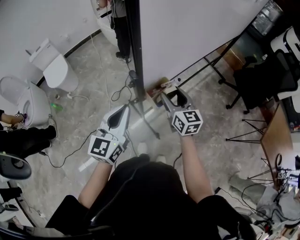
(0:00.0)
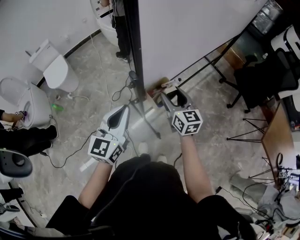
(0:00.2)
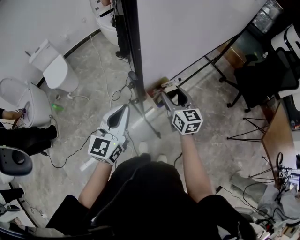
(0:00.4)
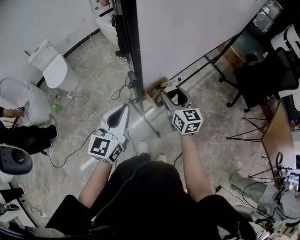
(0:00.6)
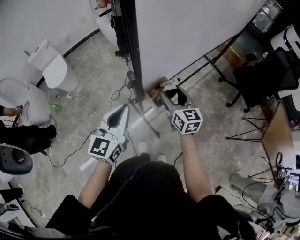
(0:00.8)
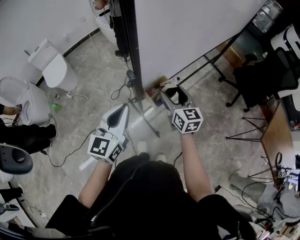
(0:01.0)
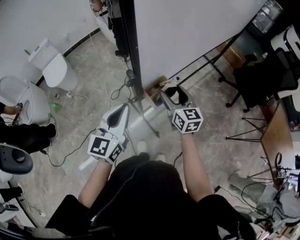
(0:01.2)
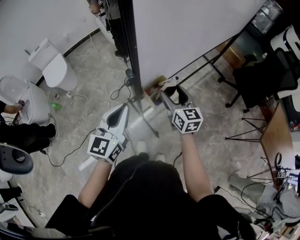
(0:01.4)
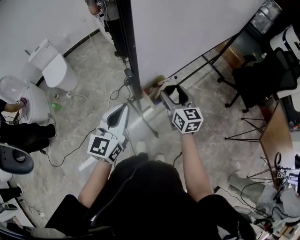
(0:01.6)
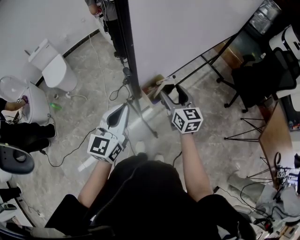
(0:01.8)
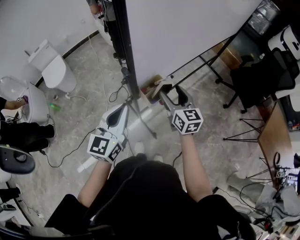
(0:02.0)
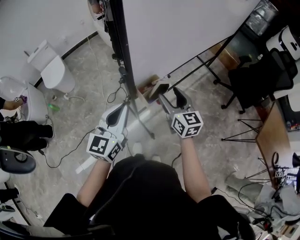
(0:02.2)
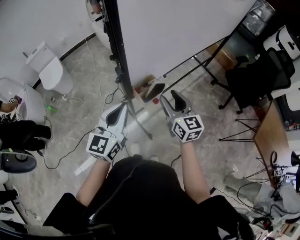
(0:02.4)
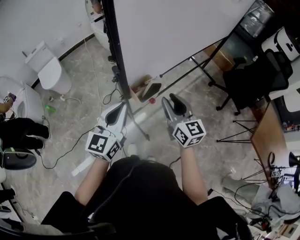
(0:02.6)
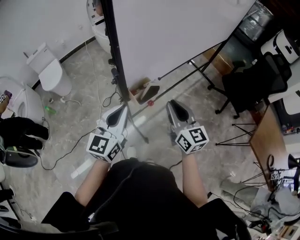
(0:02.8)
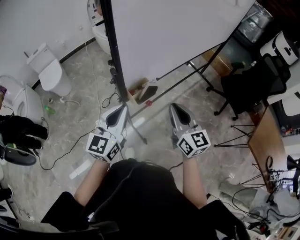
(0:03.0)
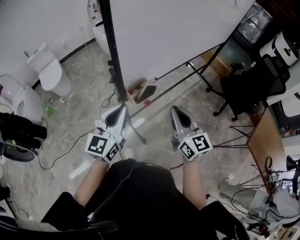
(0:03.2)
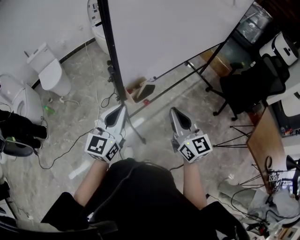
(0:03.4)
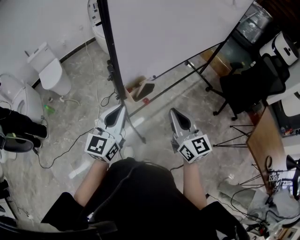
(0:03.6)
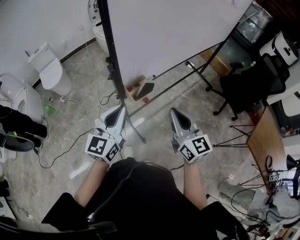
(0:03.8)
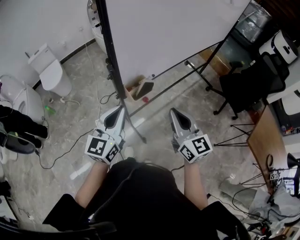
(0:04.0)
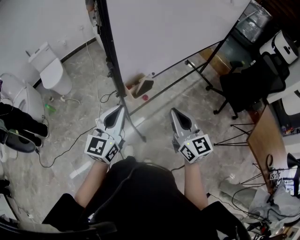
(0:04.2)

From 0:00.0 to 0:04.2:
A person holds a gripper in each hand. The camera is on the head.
From 0:00.0 to 0:01.4: Both grippers stay put.
From 0:01.4 to 0:02.8: The left gripper heads to the right, covering approximately 5 cm. The right gripper goes roughly 15 cm backward, upward and to the right, and closes up.
From 0:02.8 to 0:04.2: The right gripper travels backward by about 5 cm.

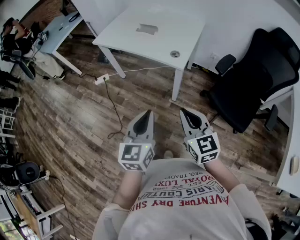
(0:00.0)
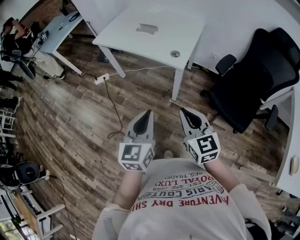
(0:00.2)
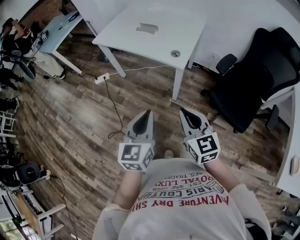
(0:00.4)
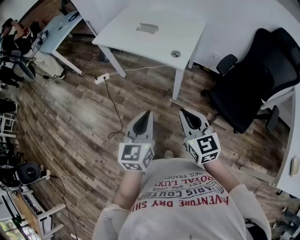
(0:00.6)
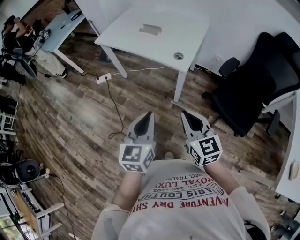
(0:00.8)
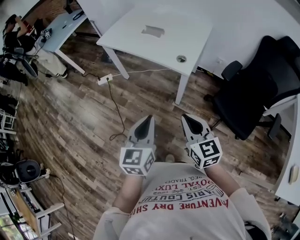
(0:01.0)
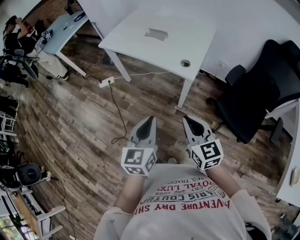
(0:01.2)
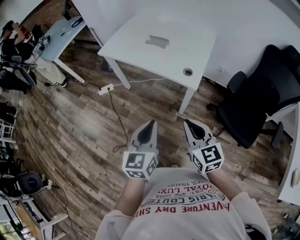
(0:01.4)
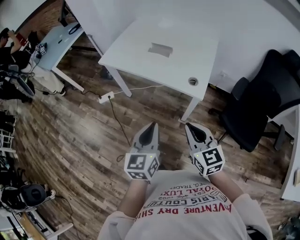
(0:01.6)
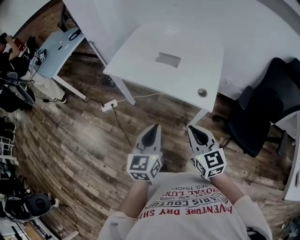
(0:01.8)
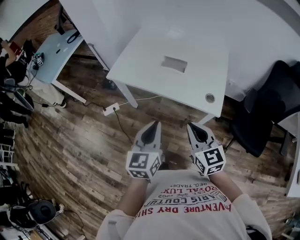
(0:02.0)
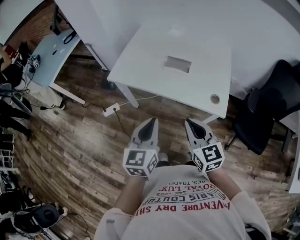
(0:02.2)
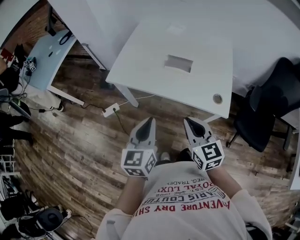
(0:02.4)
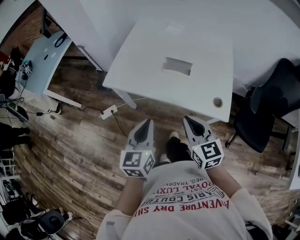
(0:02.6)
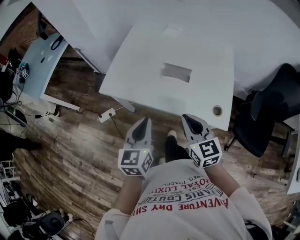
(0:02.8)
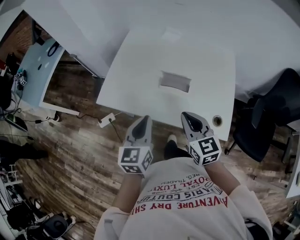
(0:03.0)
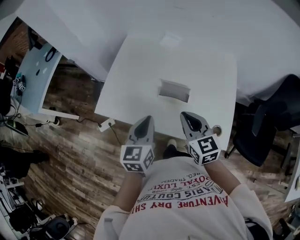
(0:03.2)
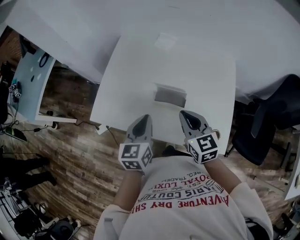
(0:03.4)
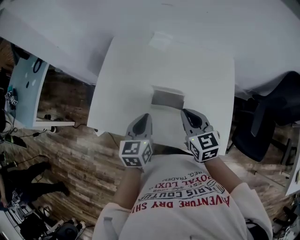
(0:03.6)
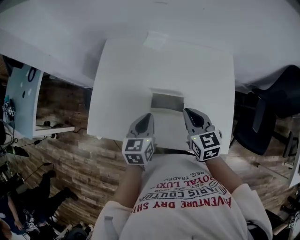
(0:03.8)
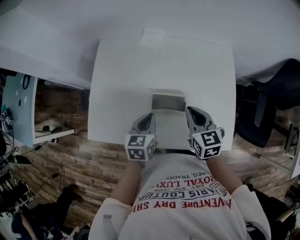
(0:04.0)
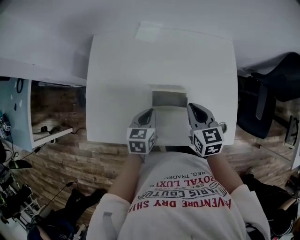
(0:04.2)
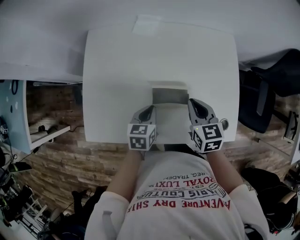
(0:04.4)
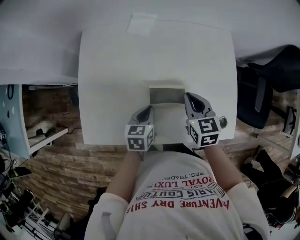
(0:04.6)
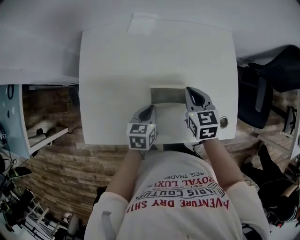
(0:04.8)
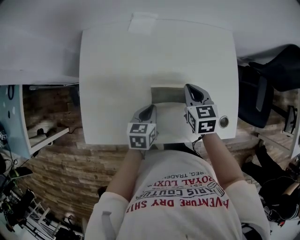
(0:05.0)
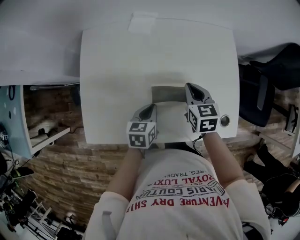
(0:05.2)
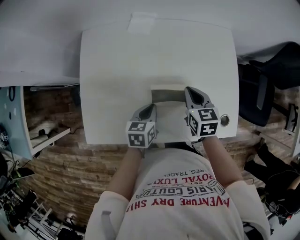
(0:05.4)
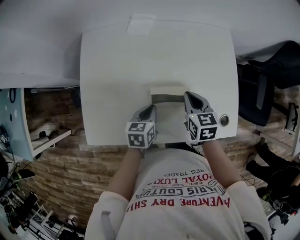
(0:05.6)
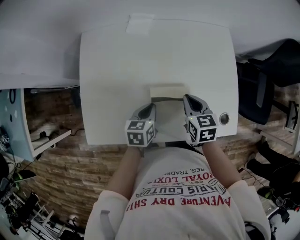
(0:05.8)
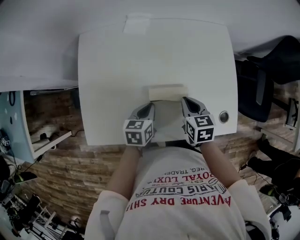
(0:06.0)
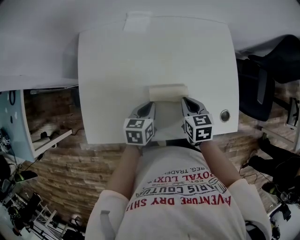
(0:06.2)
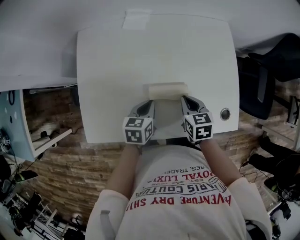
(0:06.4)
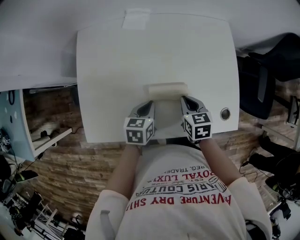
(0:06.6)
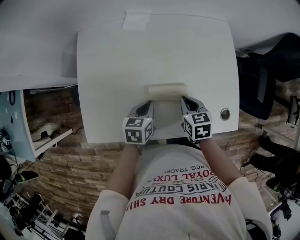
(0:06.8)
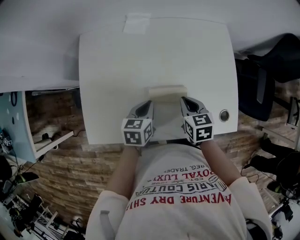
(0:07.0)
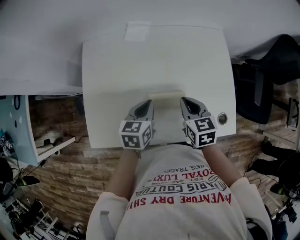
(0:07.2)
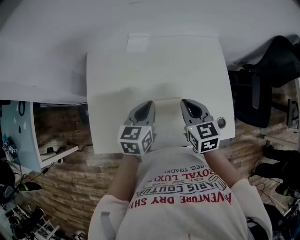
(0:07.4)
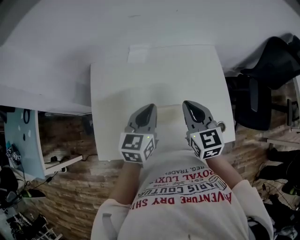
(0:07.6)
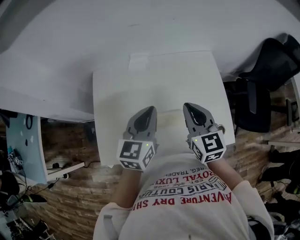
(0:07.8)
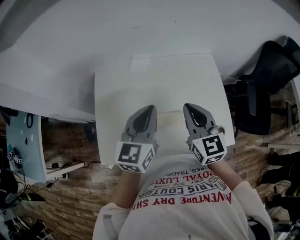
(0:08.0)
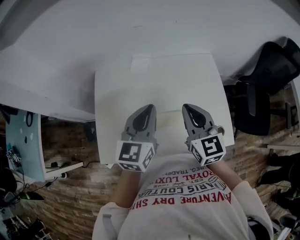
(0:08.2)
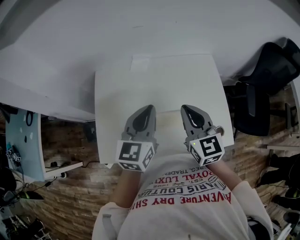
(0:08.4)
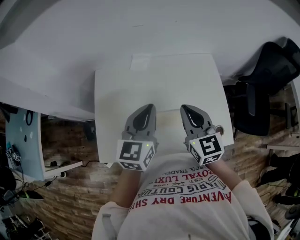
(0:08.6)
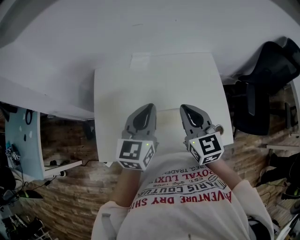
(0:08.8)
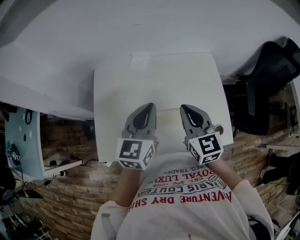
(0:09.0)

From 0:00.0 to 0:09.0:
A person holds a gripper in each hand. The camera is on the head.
From 0:00.0 to 0:01.6: The two grippers go approximately 20 cm forward and to the left.
From 0:01.6 to 0:03.0: Both grippers travel together forward, about 35 cm.
From 0:03.0 to 0:04.4: The left gripper ends up some 30 cm from where it was, and changes its angle by approximately 40 degrees. The right gripper changes place by about 20 cm, and swivels about 30 degrees.
From 0:04.4 to 0:06.0: The right gripper travels downward by roughly 5 cm.
From 0:06.0 to 0:07.6: The grippers both shift upward by some 20 cm. The right gripper swivels roughly 30 degrees. The left gripper rotates approximately 30 degrees.
From 0:07.6 to 0:09.0: The left gripper heads upward, covering approximately 5 cm.

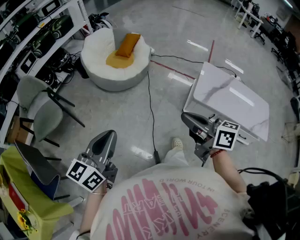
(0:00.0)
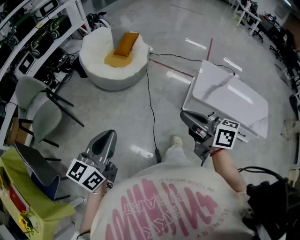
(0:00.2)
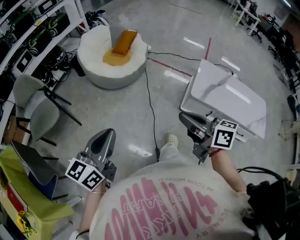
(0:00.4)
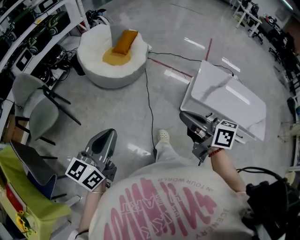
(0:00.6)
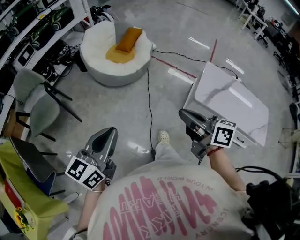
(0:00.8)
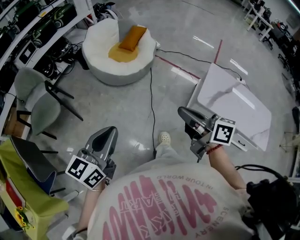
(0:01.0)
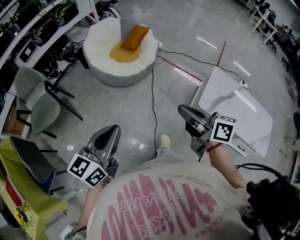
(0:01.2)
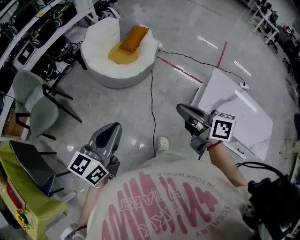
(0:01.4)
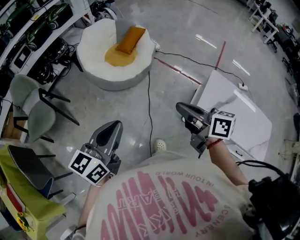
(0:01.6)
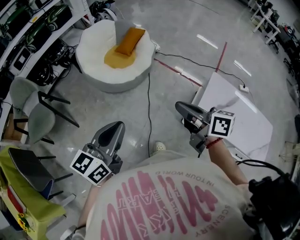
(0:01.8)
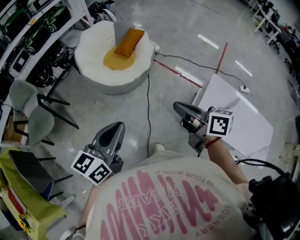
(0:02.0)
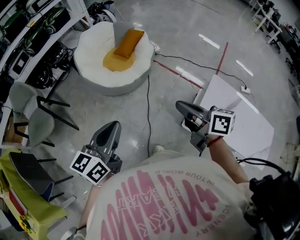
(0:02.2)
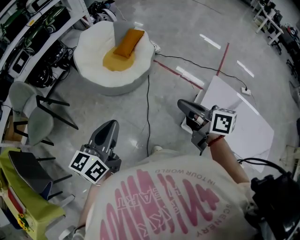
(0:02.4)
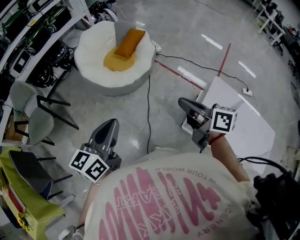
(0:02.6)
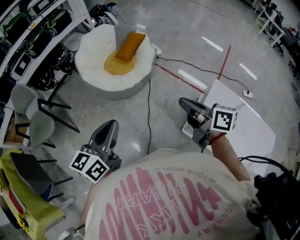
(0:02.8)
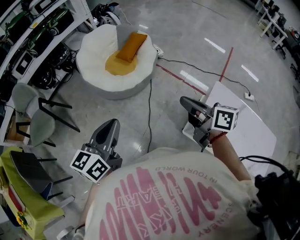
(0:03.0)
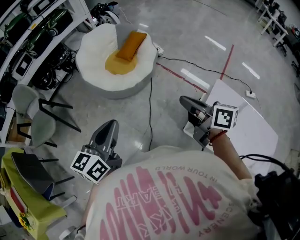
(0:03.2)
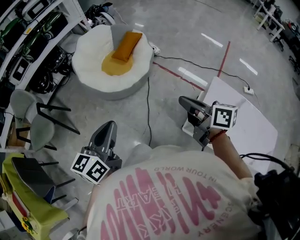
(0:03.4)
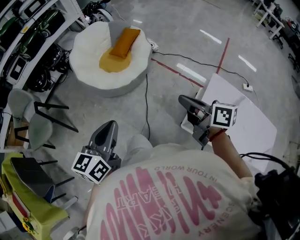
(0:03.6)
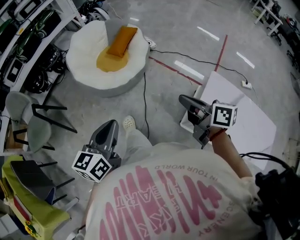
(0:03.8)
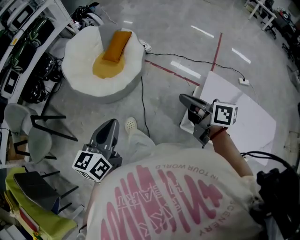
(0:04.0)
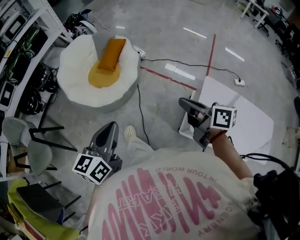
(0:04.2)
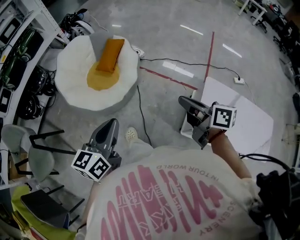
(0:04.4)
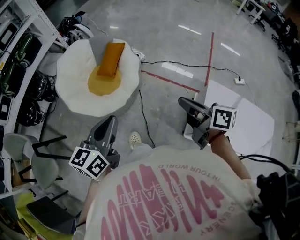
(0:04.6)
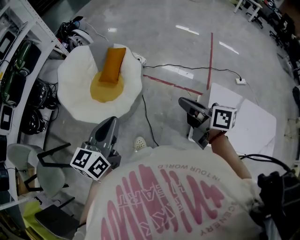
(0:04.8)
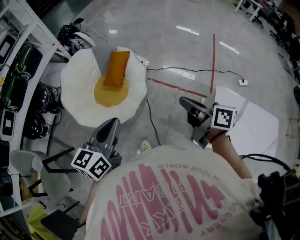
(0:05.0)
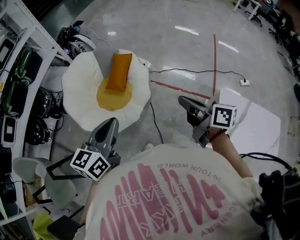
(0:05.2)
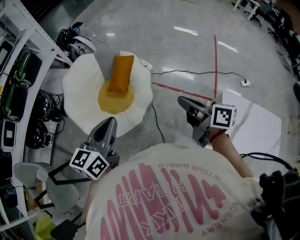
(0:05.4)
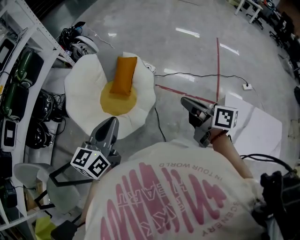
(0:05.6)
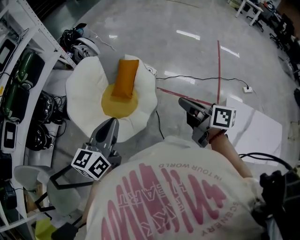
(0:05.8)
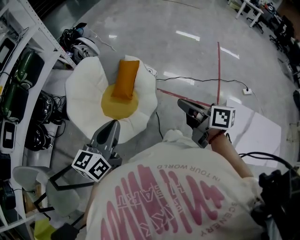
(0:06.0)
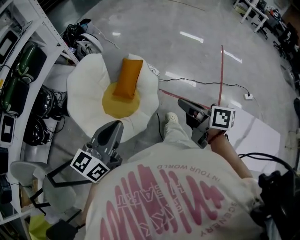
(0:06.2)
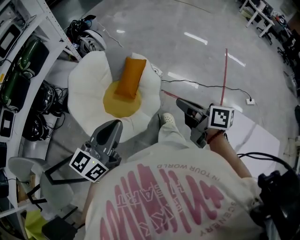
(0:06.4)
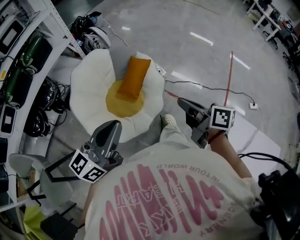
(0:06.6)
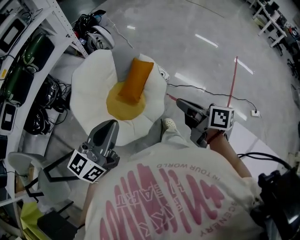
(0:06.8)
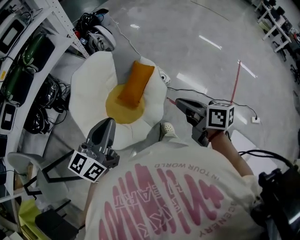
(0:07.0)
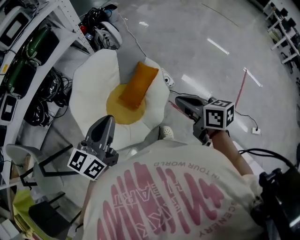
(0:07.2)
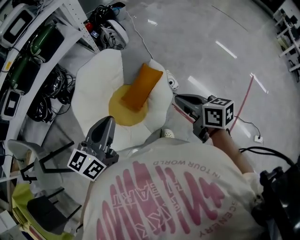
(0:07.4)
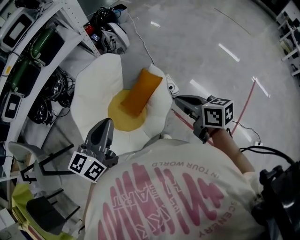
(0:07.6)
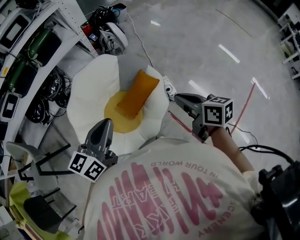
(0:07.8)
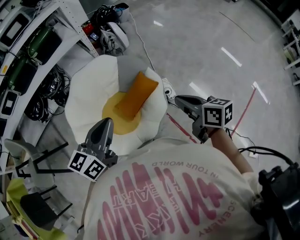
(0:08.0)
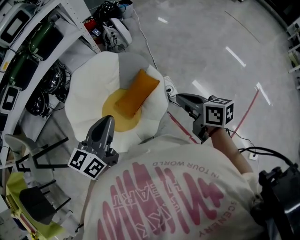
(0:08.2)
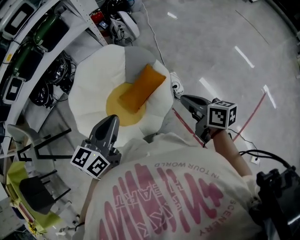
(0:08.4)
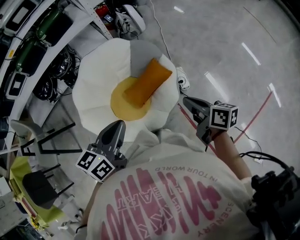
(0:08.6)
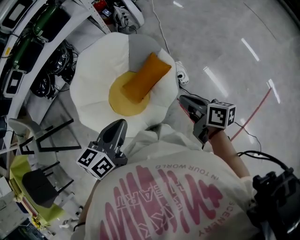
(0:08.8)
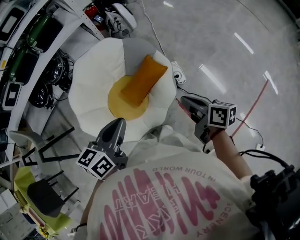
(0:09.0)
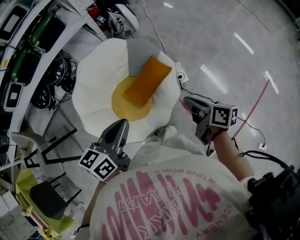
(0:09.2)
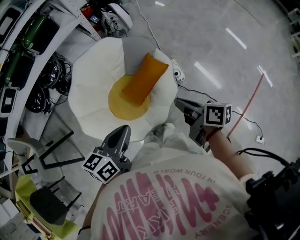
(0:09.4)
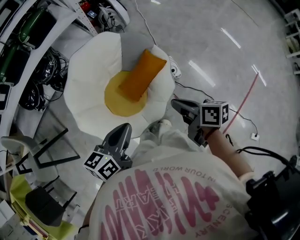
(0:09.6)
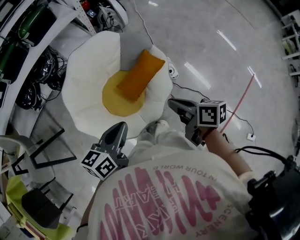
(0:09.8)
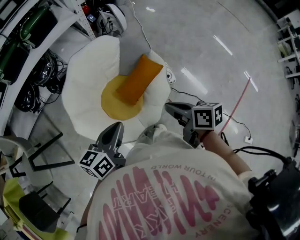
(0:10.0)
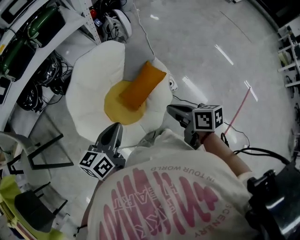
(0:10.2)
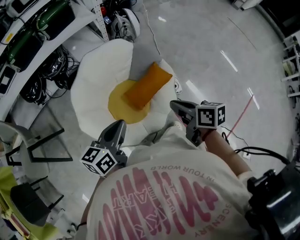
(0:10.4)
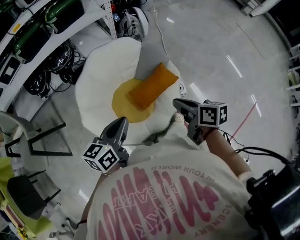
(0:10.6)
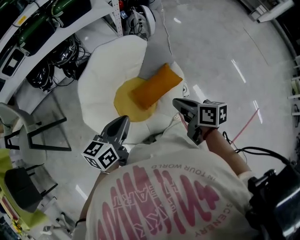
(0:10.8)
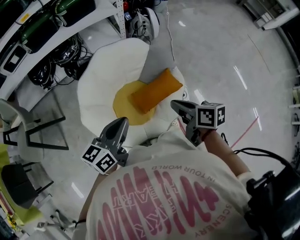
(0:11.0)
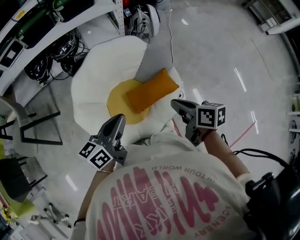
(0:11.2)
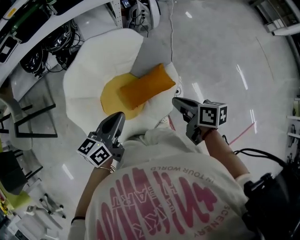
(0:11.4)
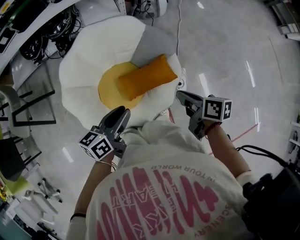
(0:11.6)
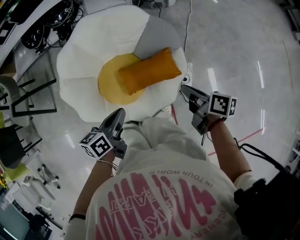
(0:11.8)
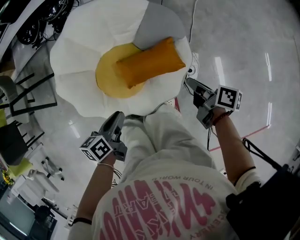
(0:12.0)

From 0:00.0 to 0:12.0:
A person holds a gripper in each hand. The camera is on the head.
From 0:00.0 to 0:01.6: The right gripper moves forward, roughly 20 cm, while the left gripper heads forward and to the right, covering about 20 cm.
From 0:01.6 to 0:03.0: Both grippers travel together forward and to the right, roughly 15 cm.
From 0:03.0 to 0:04.4: The right gripper moves forward, approximately 10 cm; the left gripper goes approximately 15 cm forward.
From 0:04.4 to 0:06.0: Both grippers move forward and to the left, approximately 25 cm.
From 0:06.0 to 0:07.6: The right gripper shifts by approximately 30 cm, and rotates about 40 degrees. Meanwhile the left gripper moves roughly 20 cm, and changes its angle by about 20 degrees.
From 0:07.6 to 0:09.0: The right gripper moves downward and to the right, about 10 cm. The left gripper shifts roughly 10 cm to the right and downward.
From 0:09.0 to 0:10.4: Both grippers travel together to the left, roughly 15 cm.
From 0:10.4 to 0:12.0: The right gripper travels to the right, downward and forward by approximately 25 cm, and changes its angle by approximately 30 degrees; the left gripper goes about 20 cm downward and to the right, and rotates approximately 40 degrees.
